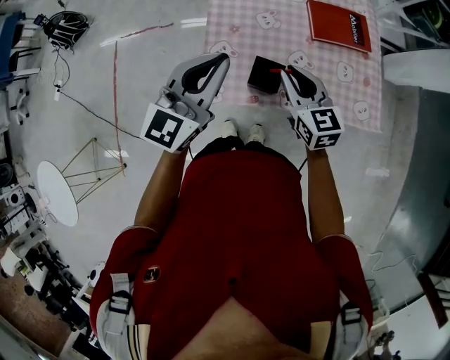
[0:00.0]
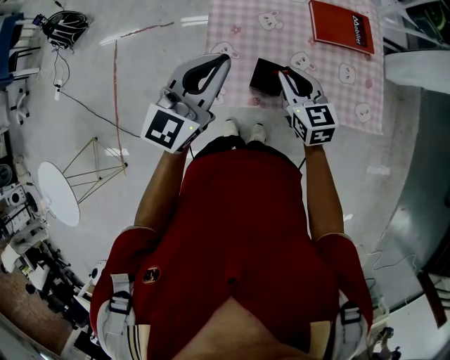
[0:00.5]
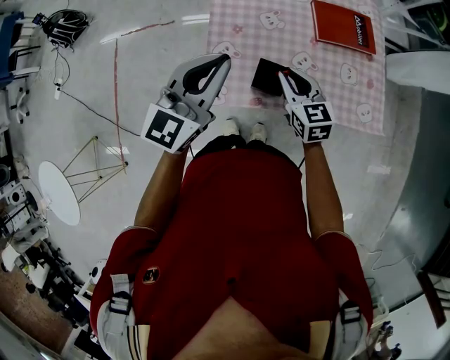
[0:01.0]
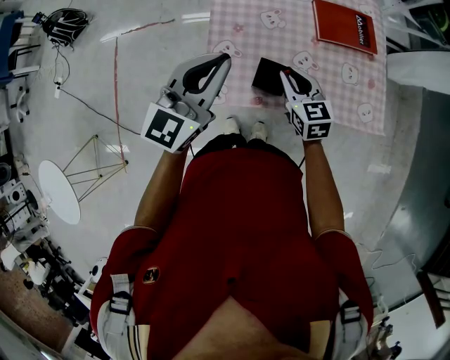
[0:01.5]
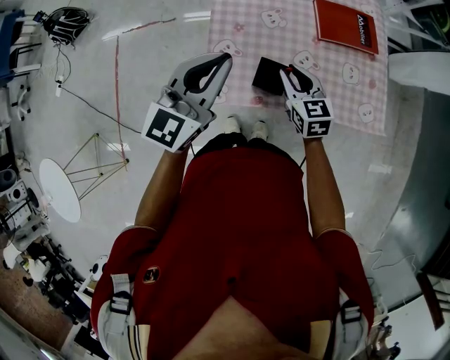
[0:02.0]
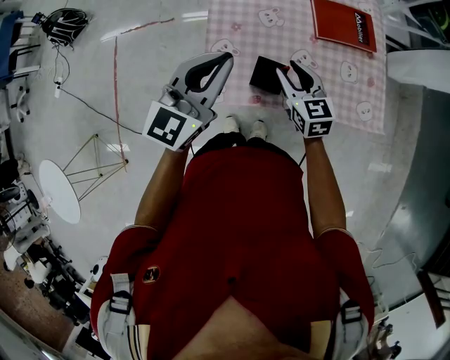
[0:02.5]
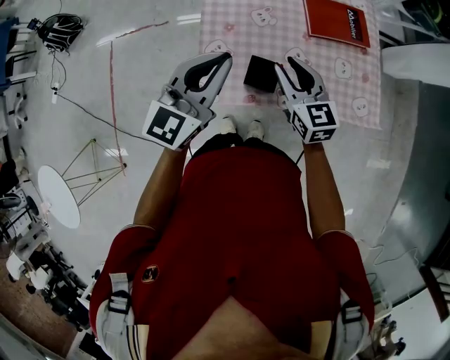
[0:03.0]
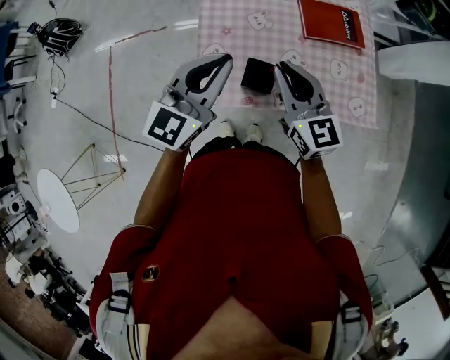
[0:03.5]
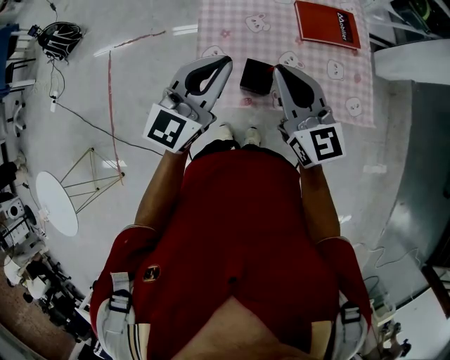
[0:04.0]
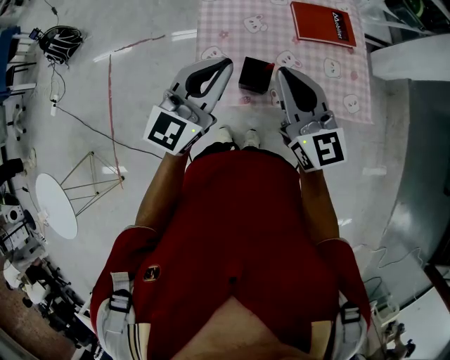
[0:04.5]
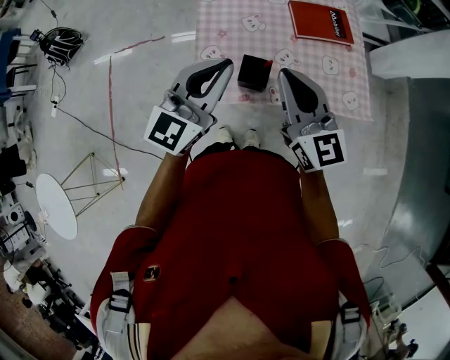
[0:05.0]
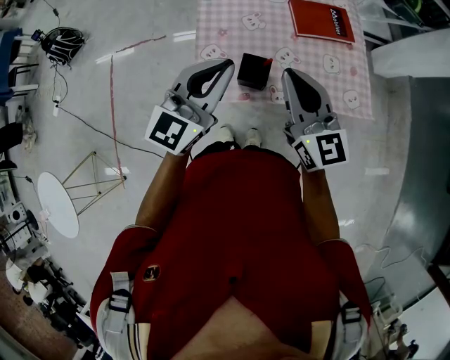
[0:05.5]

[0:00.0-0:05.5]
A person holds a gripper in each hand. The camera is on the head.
0:00.0 to 0:02.0: The right gripper is displaced downward by roughly 10 cm.
0:02.0 to 0:03.5: The right gripper shifts approximately 15 cm upward, and rotates approximately 20 degrees.
0:03.5 to 0:05.5: The left gripper shifts by approximately 5 cm; the right gripper moves upward and backward, some 10 cm.

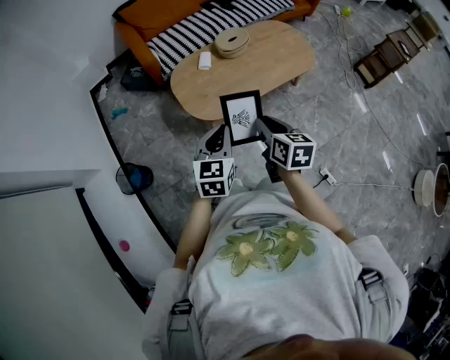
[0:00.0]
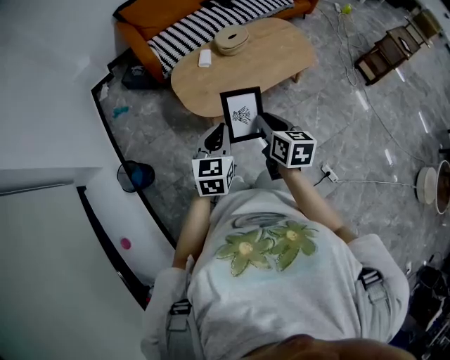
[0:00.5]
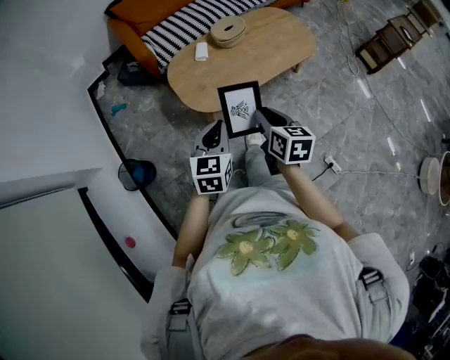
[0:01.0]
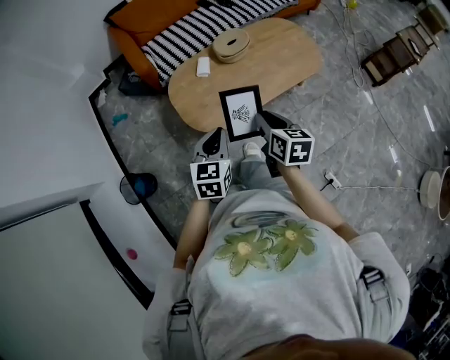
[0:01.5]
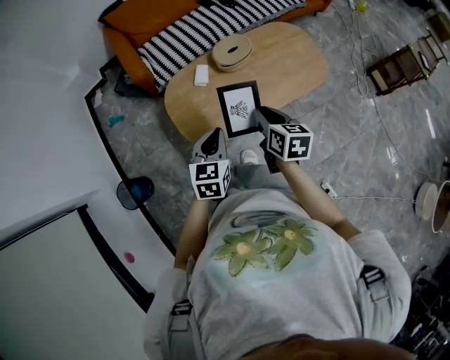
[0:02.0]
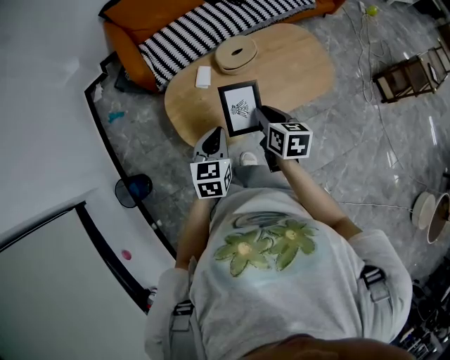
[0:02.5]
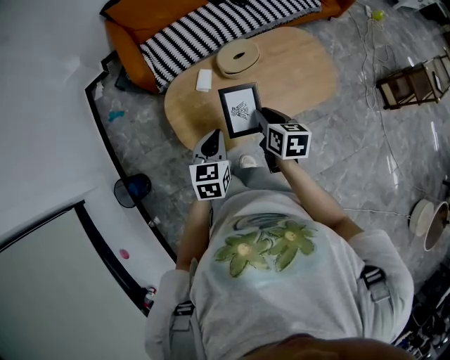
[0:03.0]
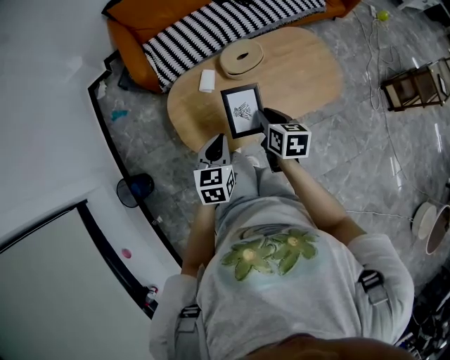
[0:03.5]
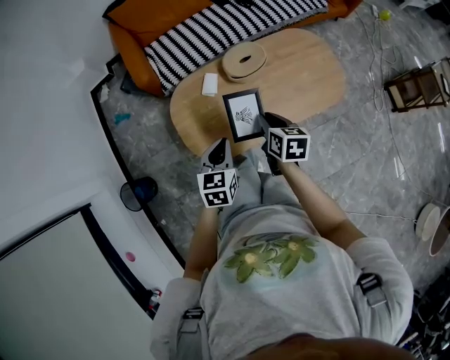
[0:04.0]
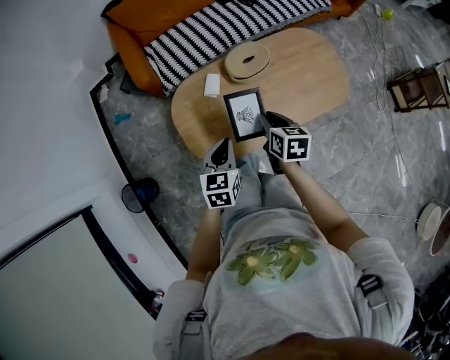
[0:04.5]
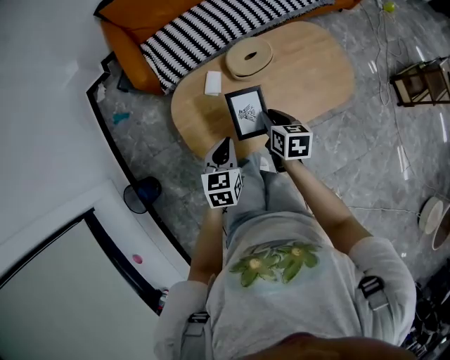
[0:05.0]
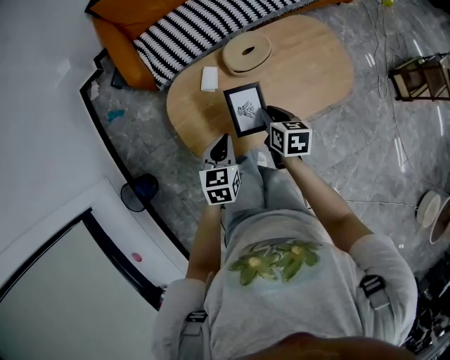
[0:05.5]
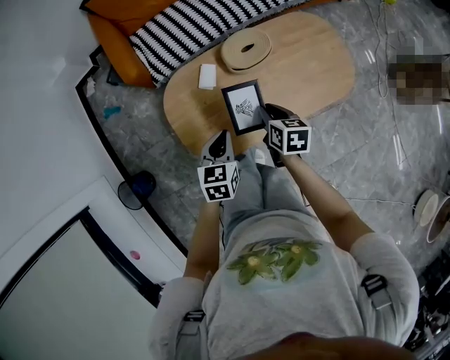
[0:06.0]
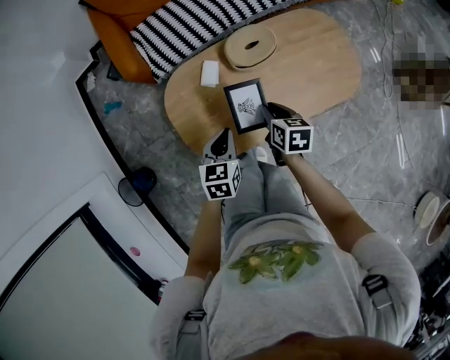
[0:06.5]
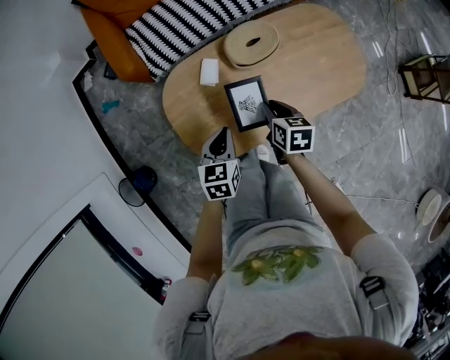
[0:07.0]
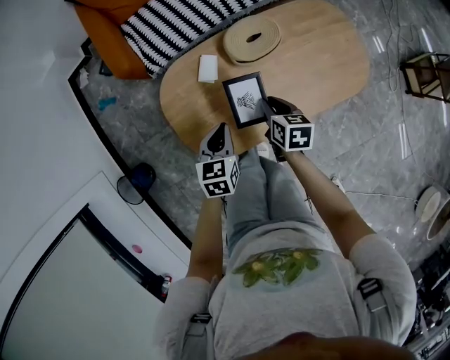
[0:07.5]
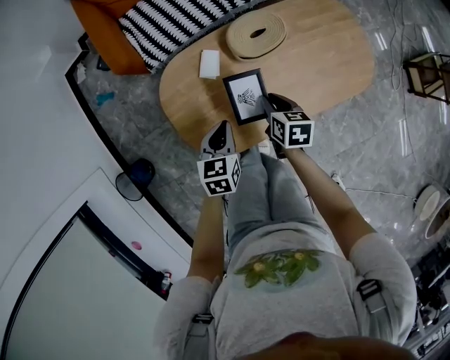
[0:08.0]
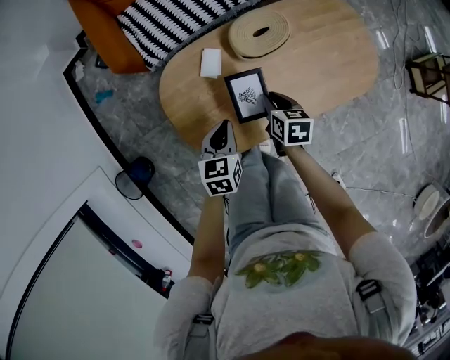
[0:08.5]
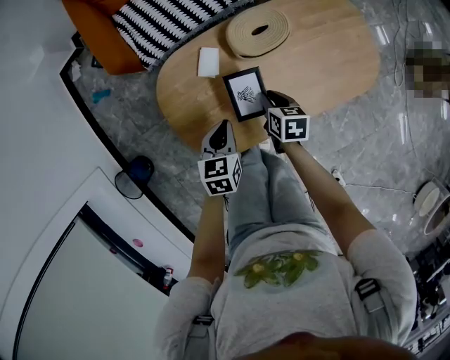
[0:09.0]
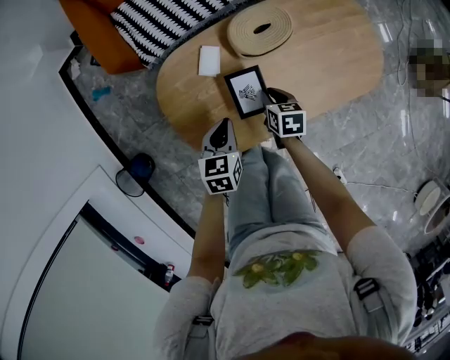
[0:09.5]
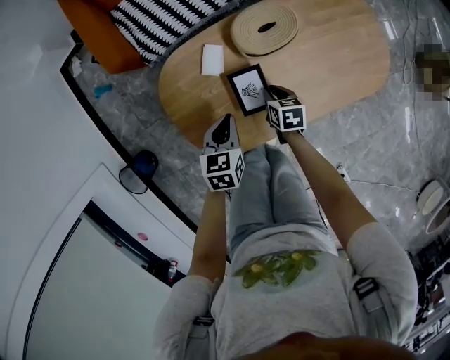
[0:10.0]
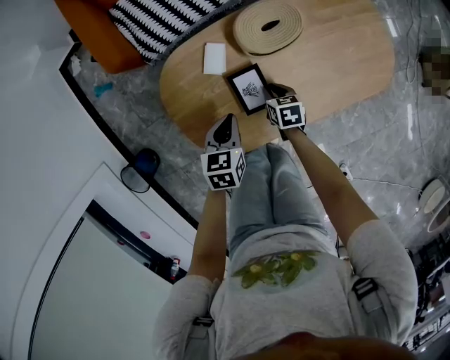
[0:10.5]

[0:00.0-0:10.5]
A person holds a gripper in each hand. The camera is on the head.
0:00.0 to 0:02.0: Both grippers travel together forward, about 20 cm.
0:02.0 to 0:04.0: The grippers both shift forward and downward by some 10 cm.
0:04.0 to 0:06.5: The grippers both shift downward and forward by approximately 10 cm.
0:06.5 to 0:08.5: The grippers both shift downward by approximately 10 cm.
0:08.5 to 0:10.5: The right gripper shifts some 15 cm downward. Meanwhile the left gripper changes place by approximately 5 cm.

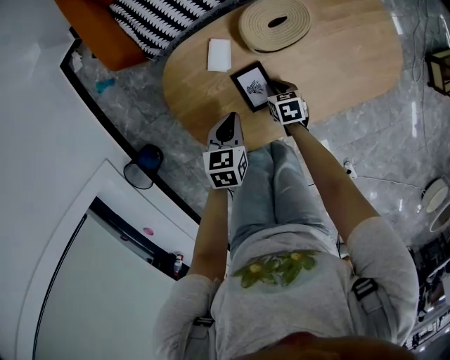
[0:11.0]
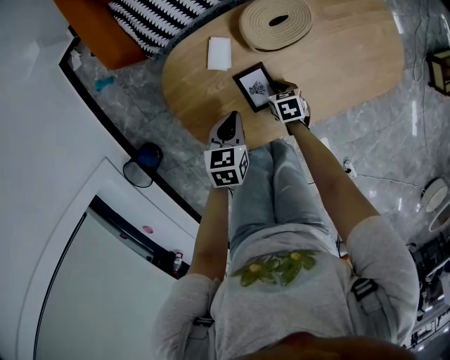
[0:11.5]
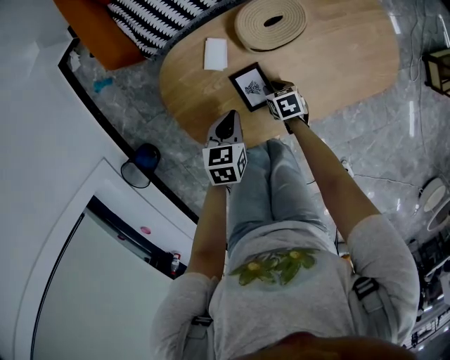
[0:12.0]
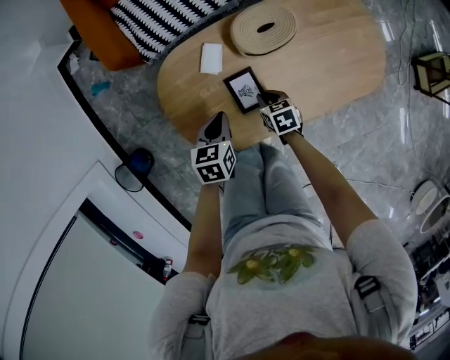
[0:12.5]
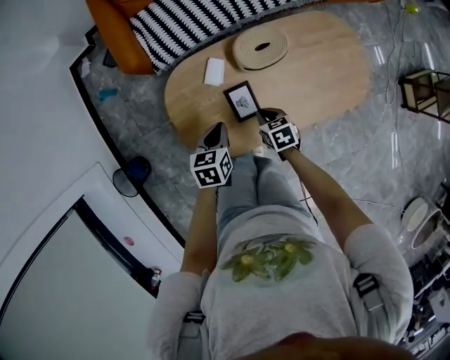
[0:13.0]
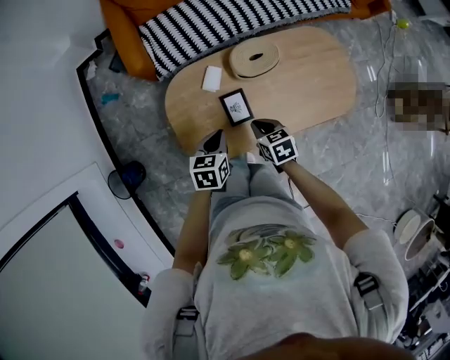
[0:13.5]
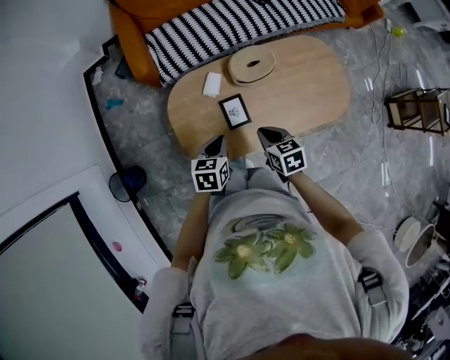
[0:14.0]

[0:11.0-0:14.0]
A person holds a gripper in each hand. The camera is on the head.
0:11.0 to 0:12.5: The right gripper is displaced upward by about 5 cm.
0:12.5 to 0:14.0: The right gripper moves upward, approximately 25 cm; the left gripper heads upward and backward, covering approximately 15 cm.

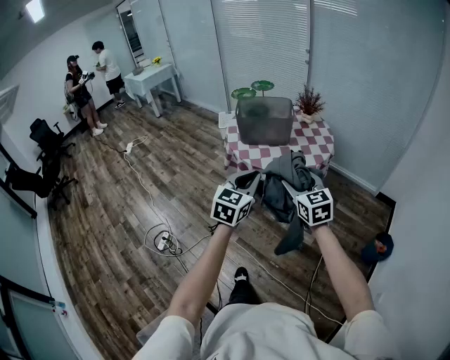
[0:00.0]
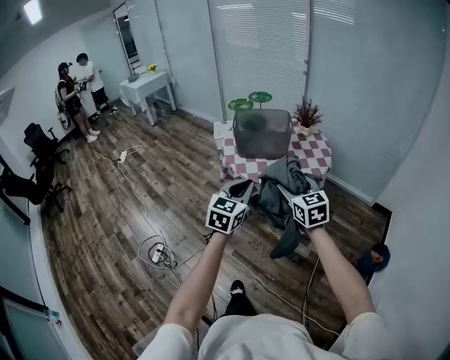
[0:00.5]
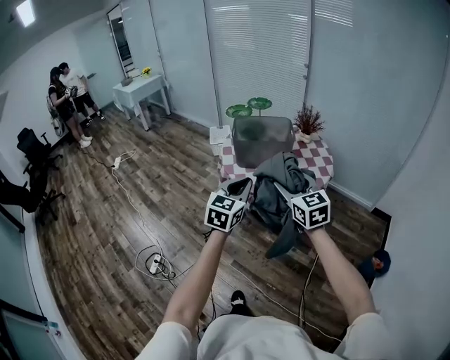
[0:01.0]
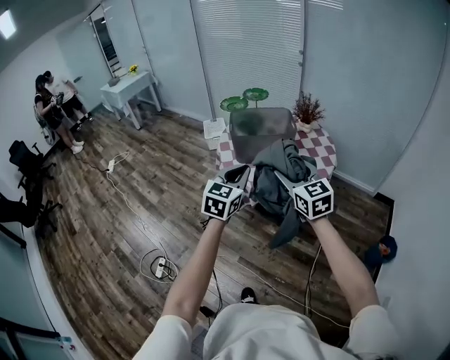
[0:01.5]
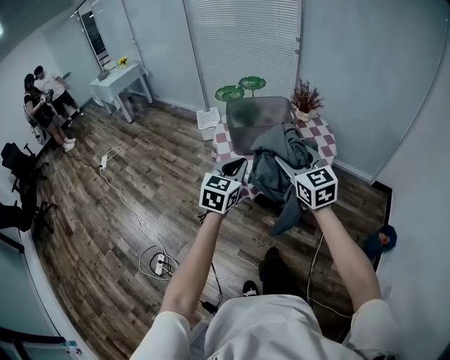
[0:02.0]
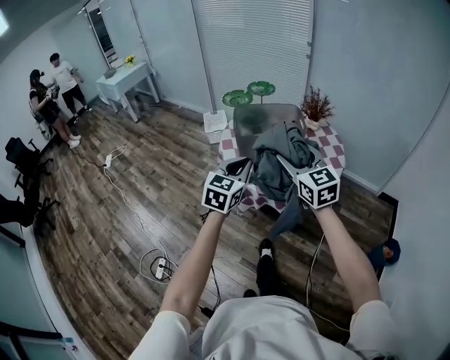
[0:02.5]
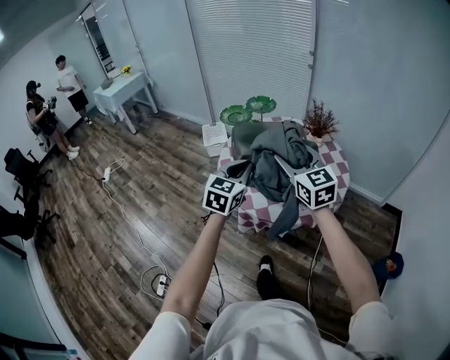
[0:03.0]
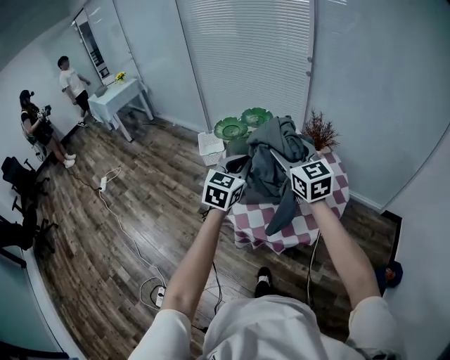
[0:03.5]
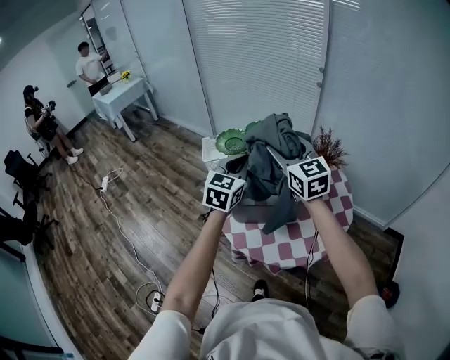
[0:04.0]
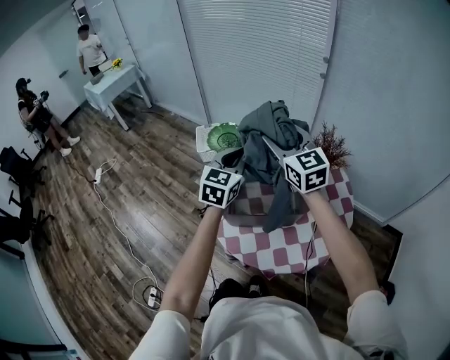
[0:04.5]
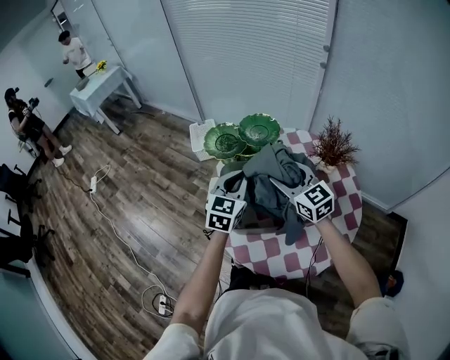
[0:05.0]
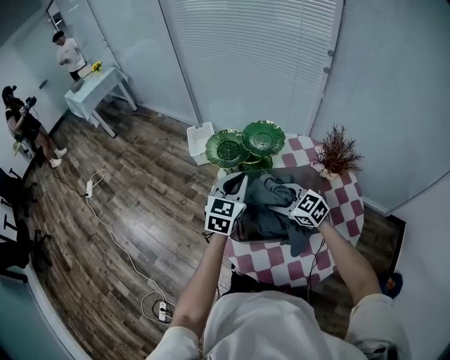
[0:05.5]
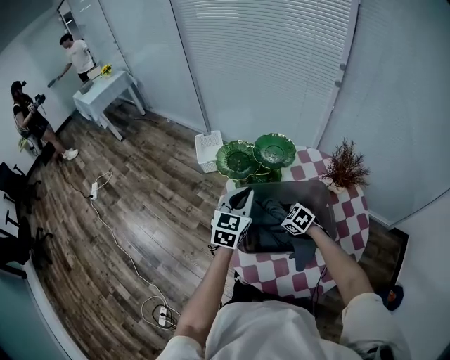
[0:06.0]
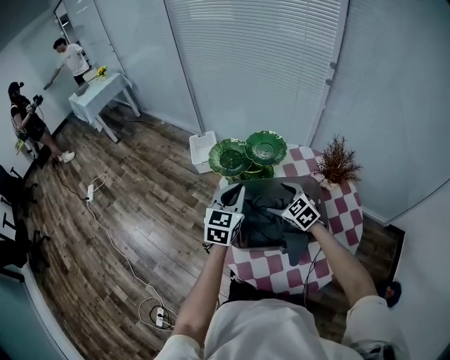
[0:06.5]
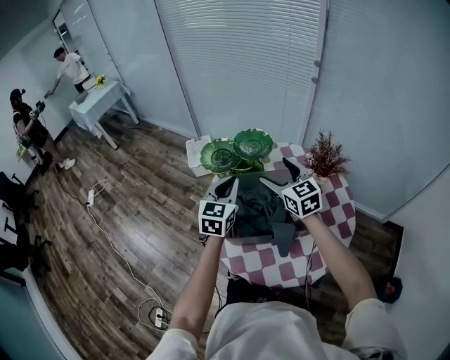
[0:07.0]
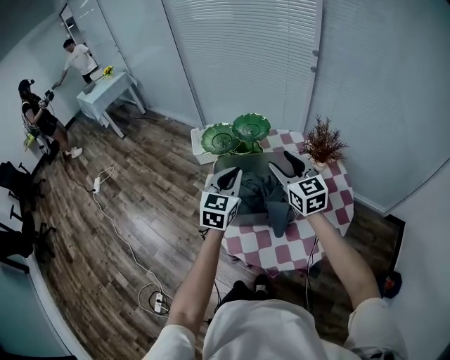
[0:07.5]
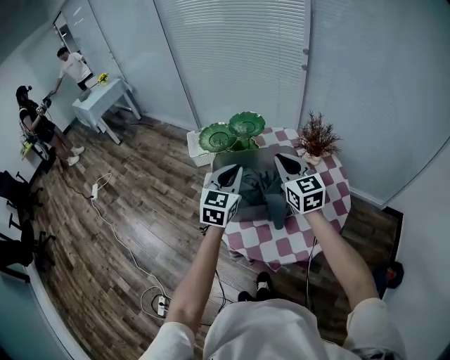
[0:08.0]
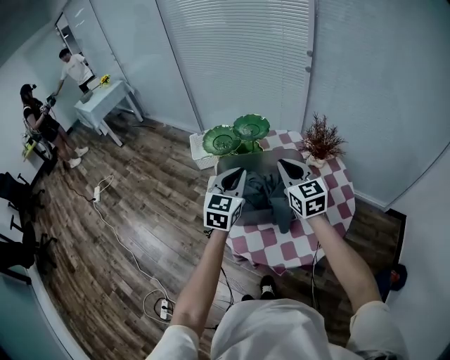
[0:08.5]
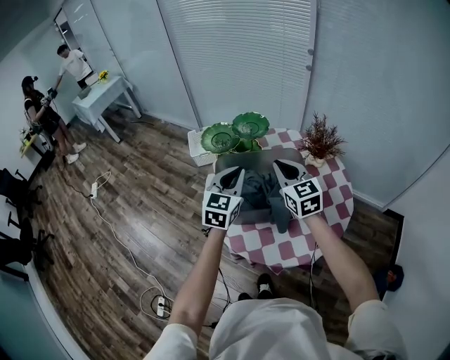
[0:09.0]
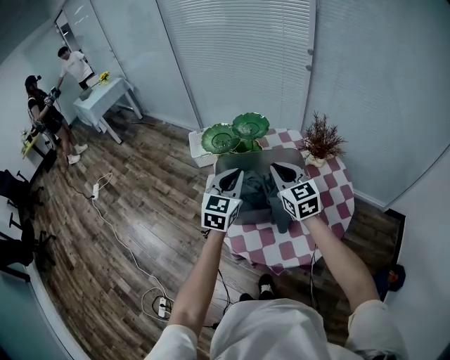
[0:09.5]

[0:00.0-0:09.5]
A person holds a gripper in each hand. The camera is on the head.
0:00.0 to 0:02.0: The grippers both shift forward and to the left by about 25 cm.
0:02.0 to 0:04.0: Both grippers move forward, roughly 35 cm.
0:04.0 to 0:05.5: The left gripper travels forward and downward by some 20 cm; the right gripper moves downward, roughly 30 cm, and rotates roughly 40 degrees.
0:05.5 to 0:07.5: The right gripper travels upward and to the right by some 20 cm, rotates about 40 degrees, and opens, then closes again; the left gripper shifts roughly 10 cm backward.
0:07.5 to 0:09.5: The right gripper closes its fingers.
